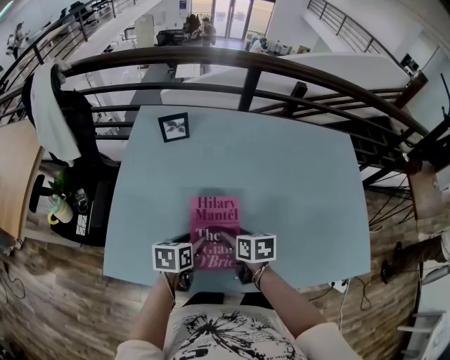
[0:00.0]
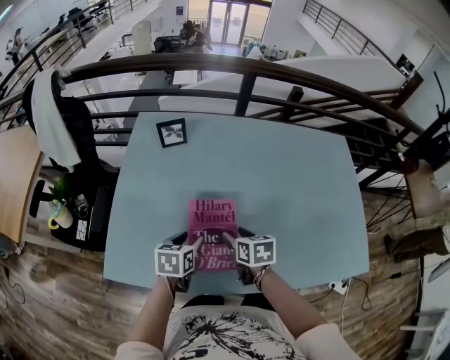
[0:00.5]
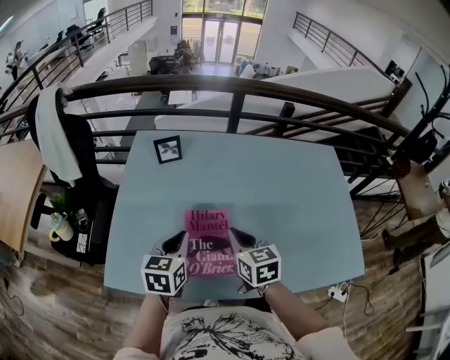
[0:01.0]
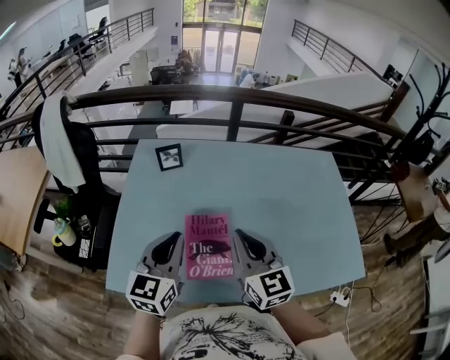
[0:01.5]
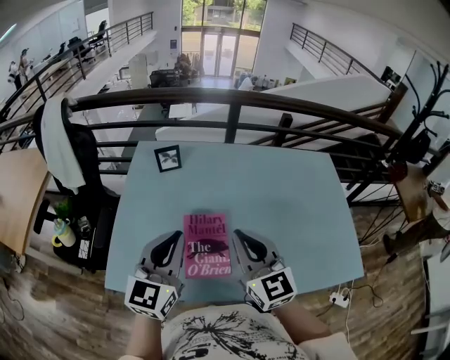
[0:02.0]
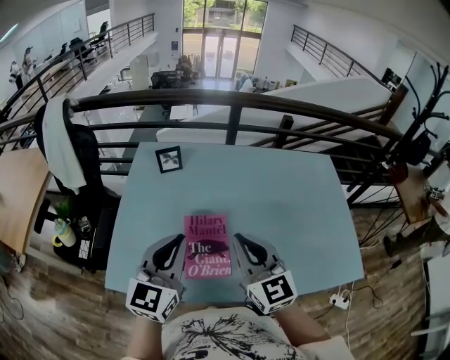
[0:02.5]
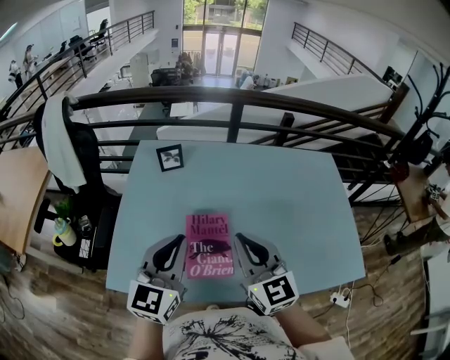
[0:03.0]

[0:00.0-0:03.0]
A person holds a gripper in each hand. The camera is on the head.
0:00.0 to 0:01.5: The two grippers go some 25 cm upward. The left gripper points its fingers some 40 degrees further upward, and closes, while the right gripper angles its fingers upward, by some 40 degrees, and closes up.
0:01.5 to 0:03.0: The left gripper ends up about 5 cm from where it was.

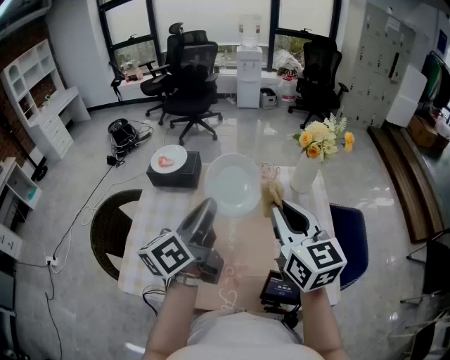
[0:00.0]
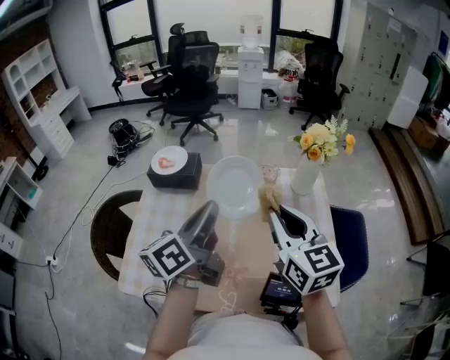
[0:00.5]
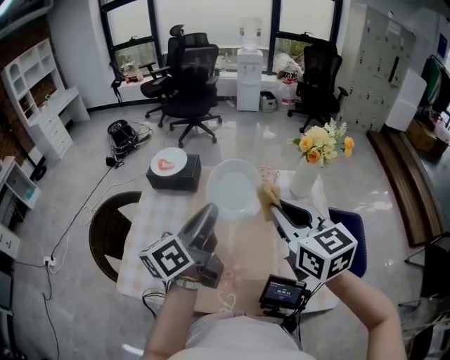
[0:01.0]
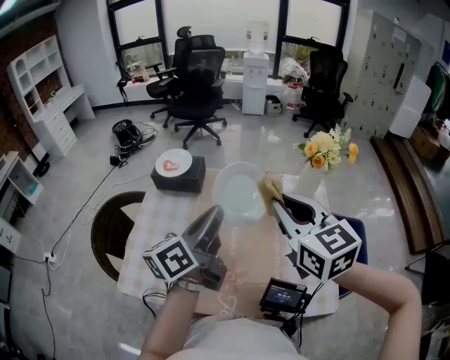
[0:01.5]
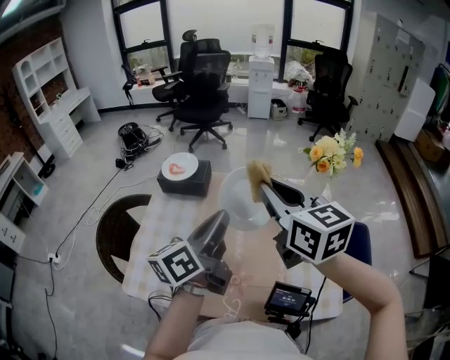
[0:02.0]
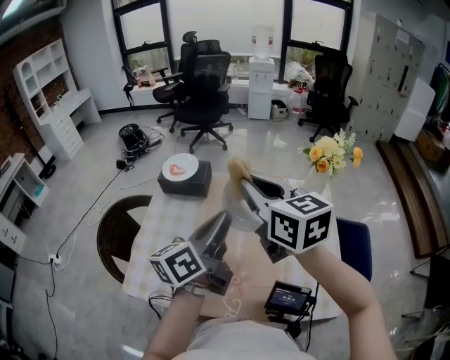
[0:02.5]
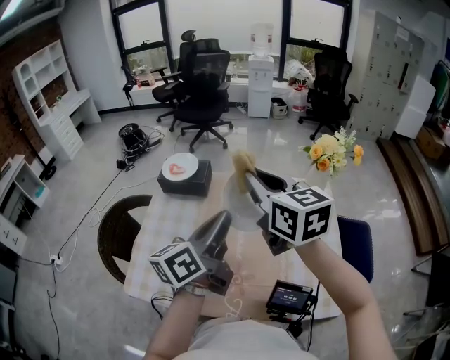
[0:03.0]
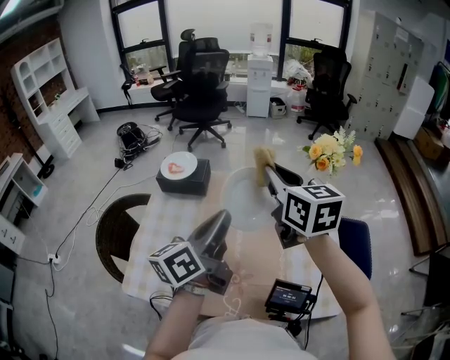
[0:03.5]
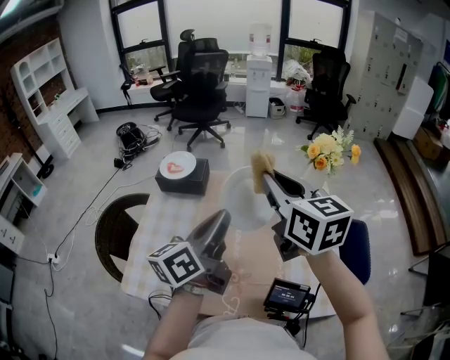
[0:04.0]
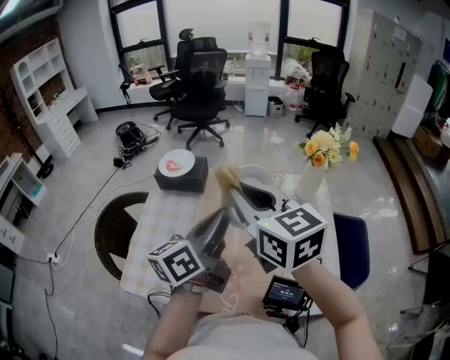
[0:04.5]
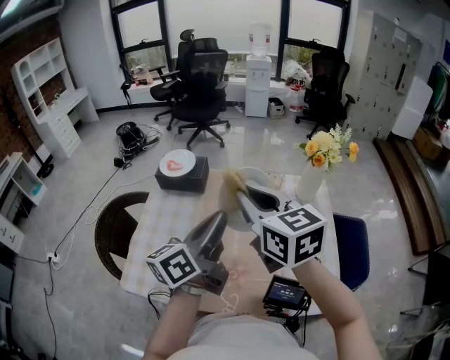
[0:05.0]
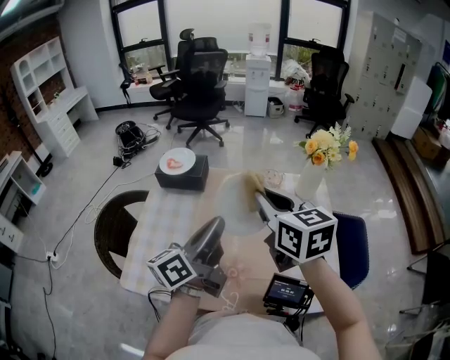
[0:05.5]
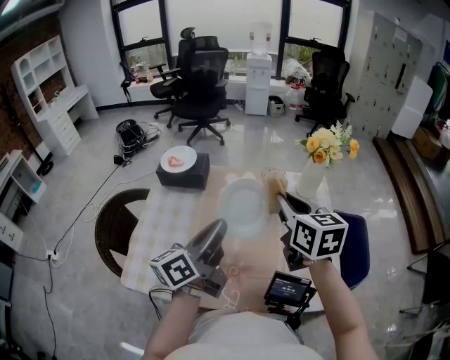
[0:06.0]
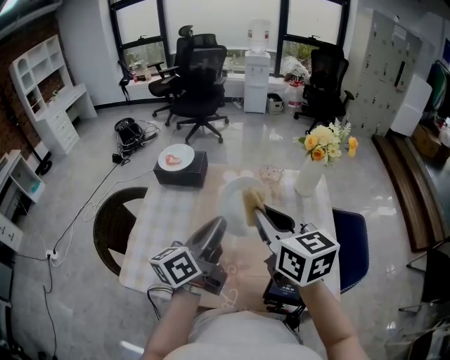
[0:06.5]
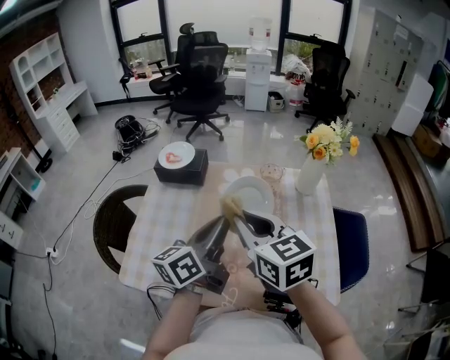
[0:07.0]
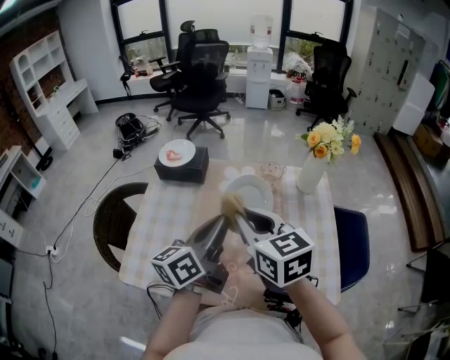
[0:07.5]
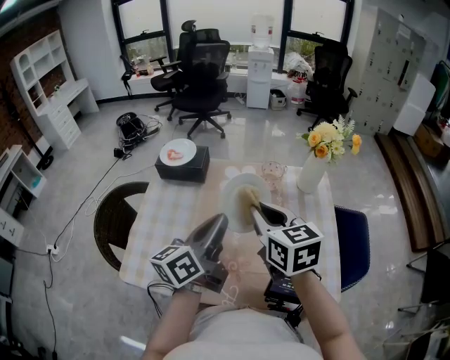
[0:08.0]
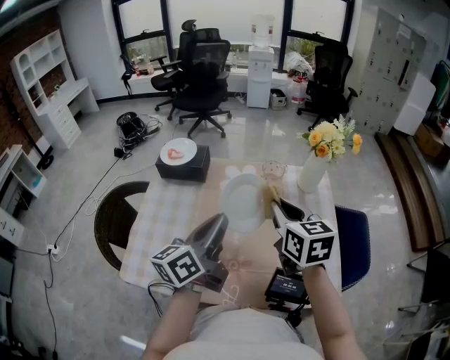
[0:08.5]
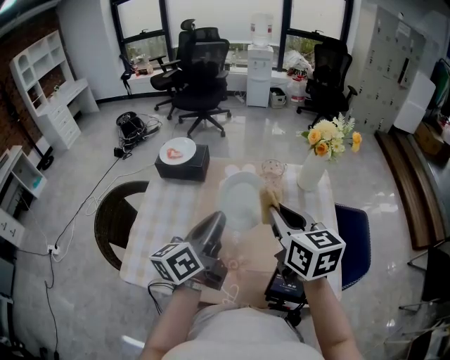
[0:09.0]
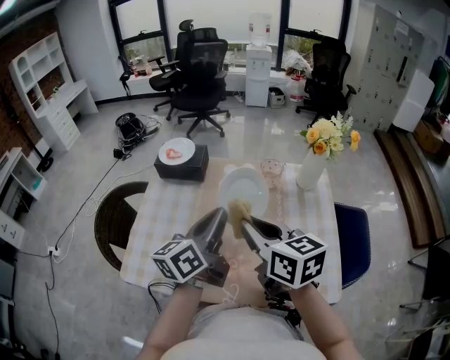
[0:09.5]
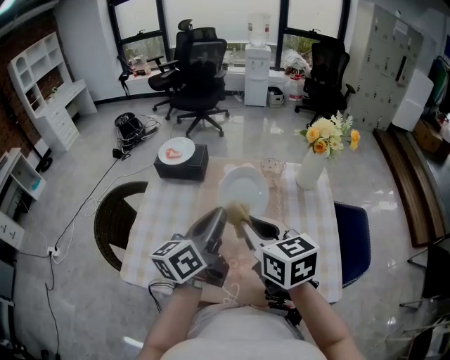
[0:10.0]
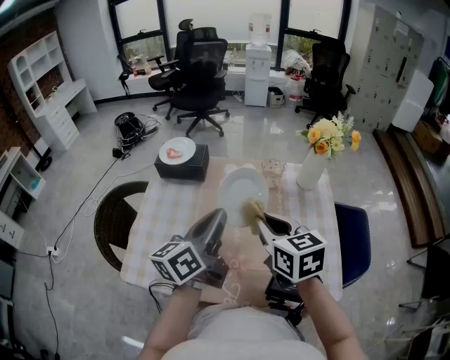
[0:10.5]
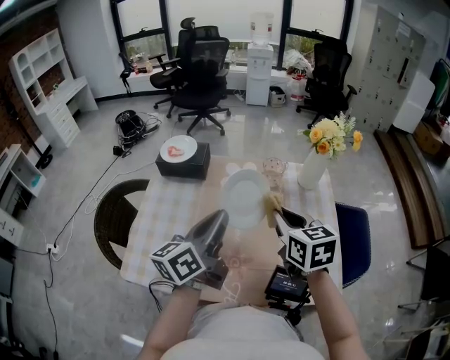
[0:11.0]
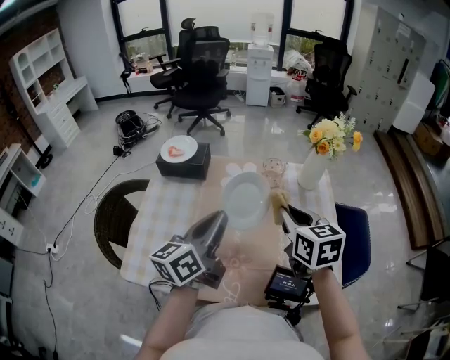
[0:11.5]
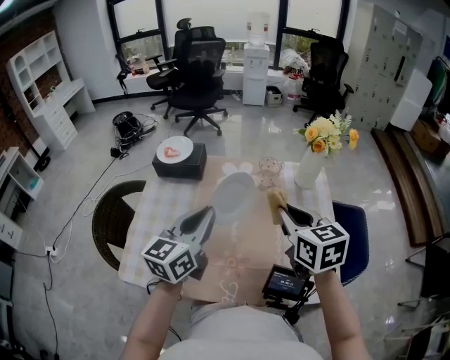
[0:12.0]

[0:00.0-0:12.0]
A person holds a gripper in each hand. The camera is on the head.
0:00.0 to 0:02.0: The right gripper moves some 10 cm.
0:04.0 to 0:06.0: The right gripper moves downward, some 10 cm.
0:10.0 to 0:12.0: The right gripper moves some 10 cm.

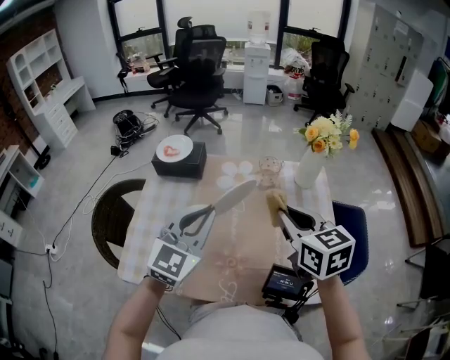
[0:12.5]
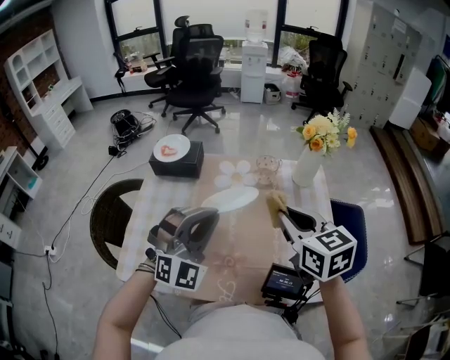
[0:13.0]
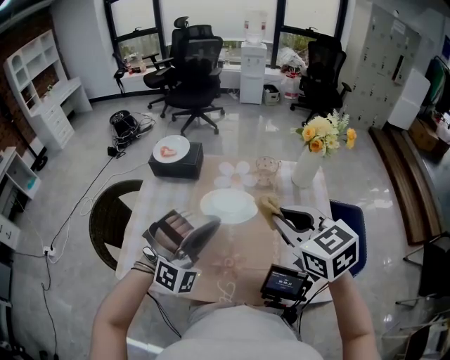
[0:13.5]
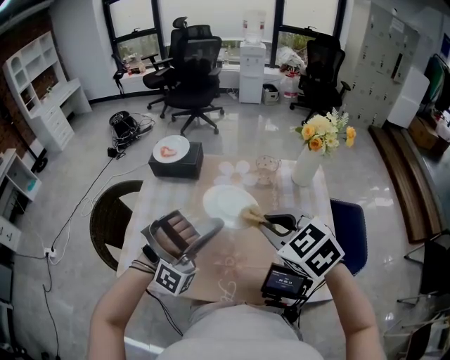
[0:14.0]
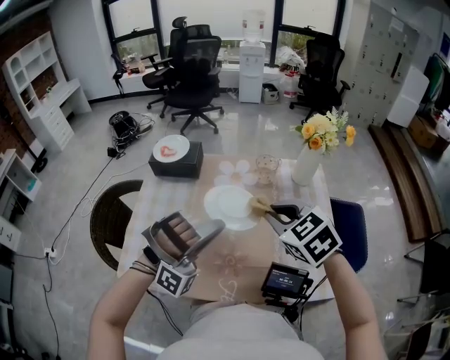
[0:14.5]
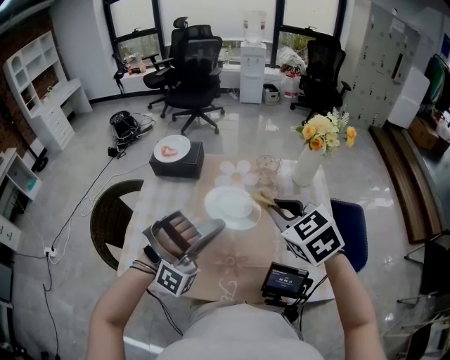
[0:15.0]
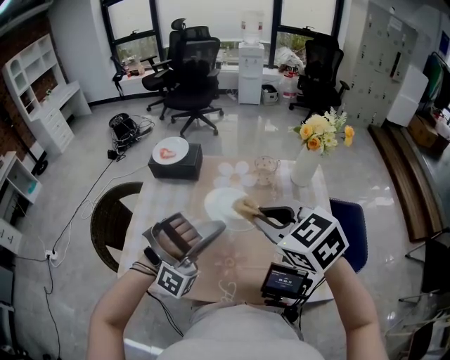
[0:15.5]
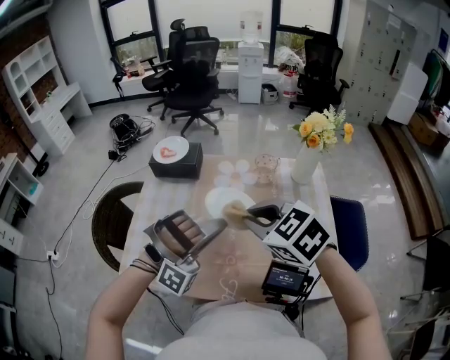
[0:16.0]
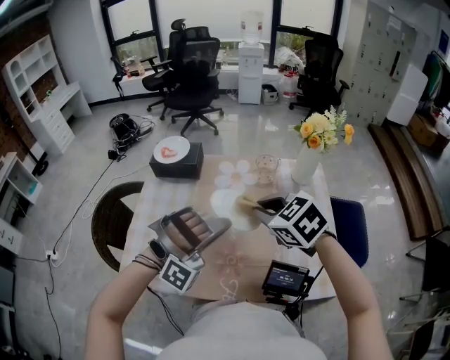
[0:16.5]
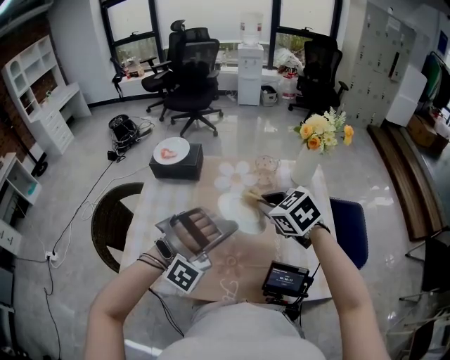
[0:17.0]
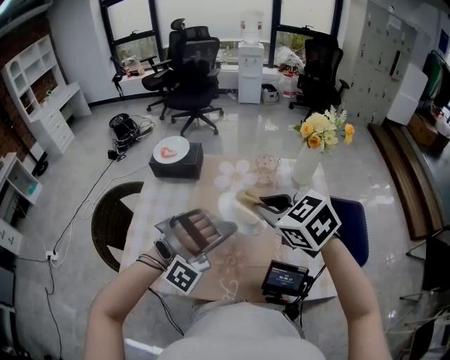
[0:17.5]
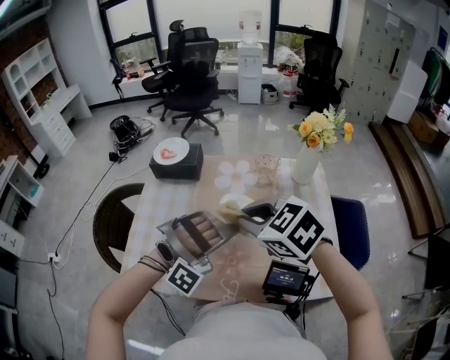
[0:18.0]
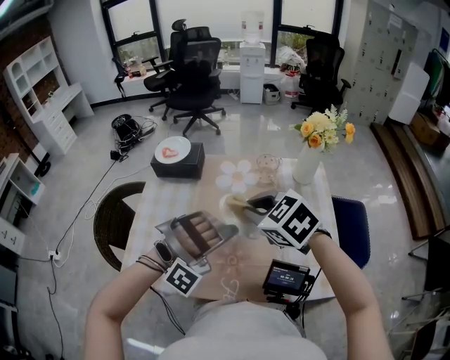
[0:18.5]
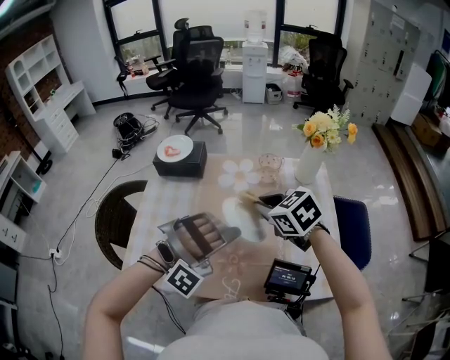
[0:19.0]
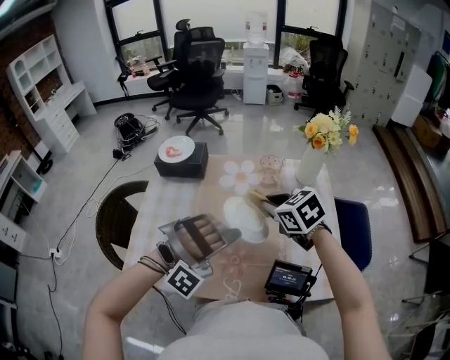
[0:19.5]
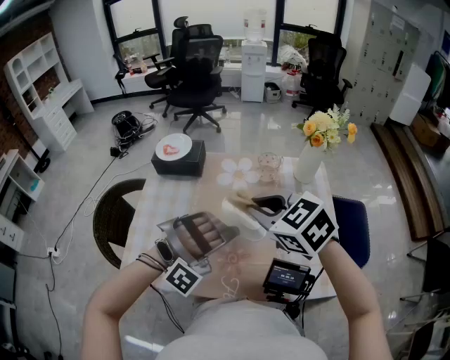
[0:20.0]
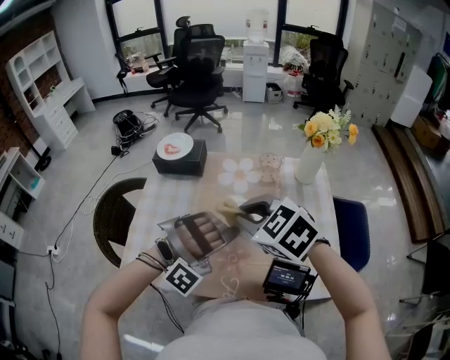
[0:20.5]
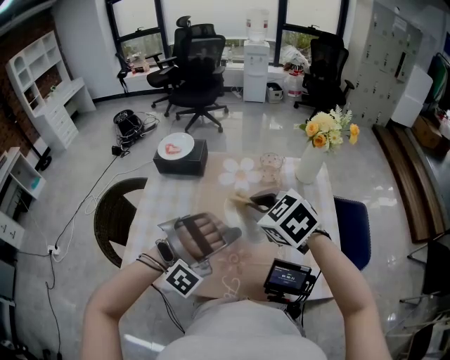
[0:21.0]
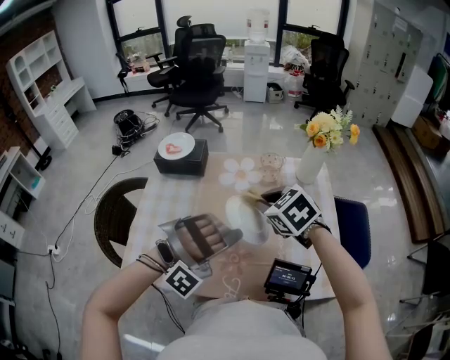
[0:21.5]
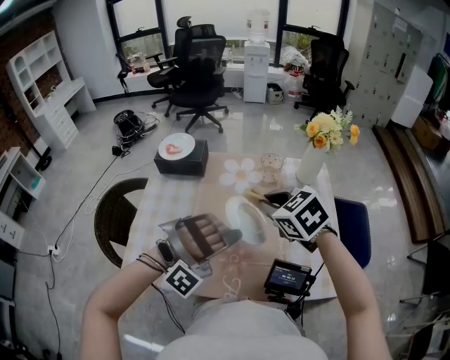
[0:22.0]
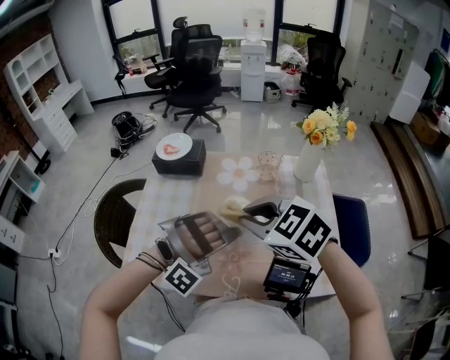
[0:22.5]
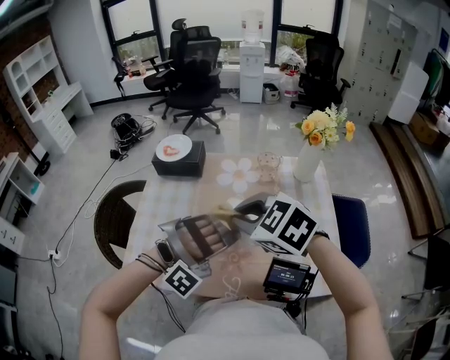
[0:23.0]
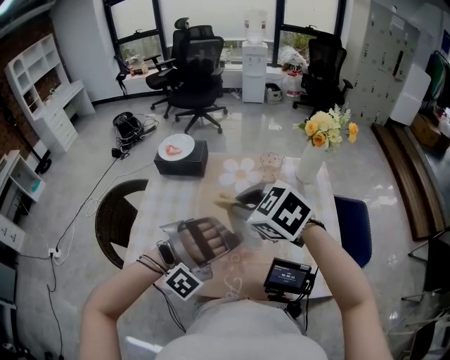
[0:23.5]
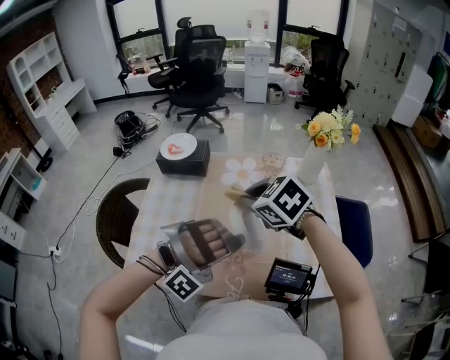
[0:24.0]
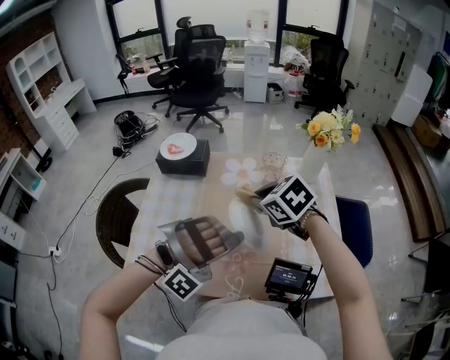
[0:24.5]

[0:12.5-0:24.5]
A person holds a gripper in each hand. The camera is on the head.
0:12.5 to 0:14.5: The right gripper rotates roughly 30 degrees.
0:18.5 to 0:20.5: The right gripper travels downward and back again, about 5 cm each way.
0:22.5 to 0:24.5: The right gripper shifts by about 10 cm.

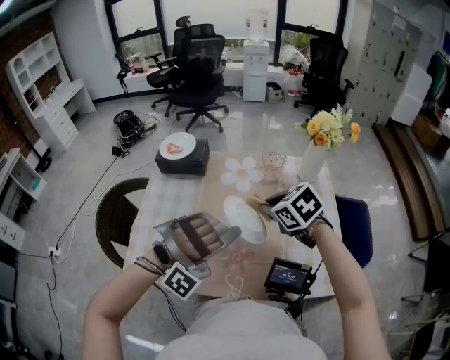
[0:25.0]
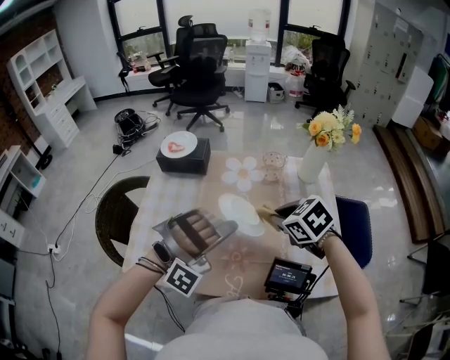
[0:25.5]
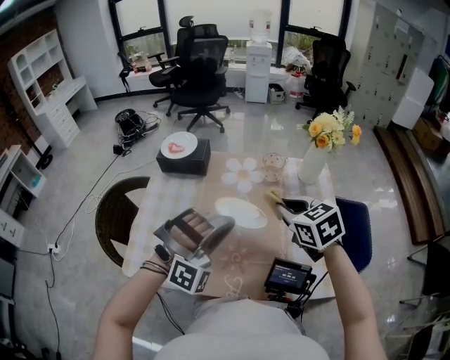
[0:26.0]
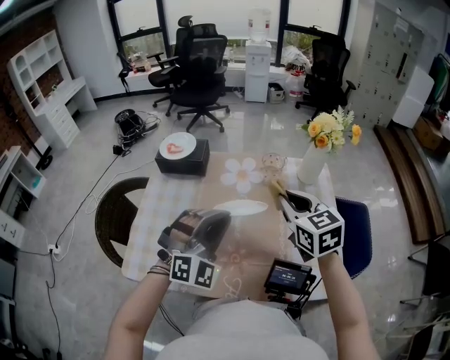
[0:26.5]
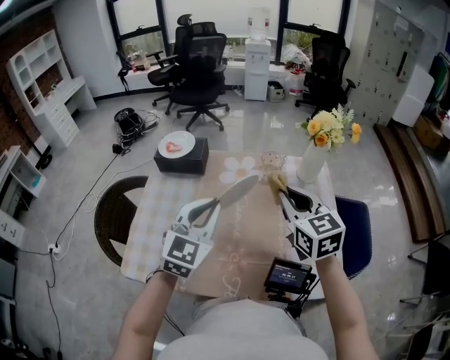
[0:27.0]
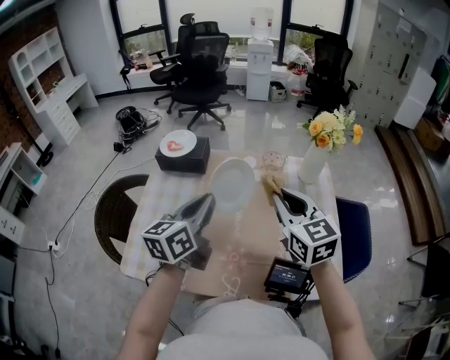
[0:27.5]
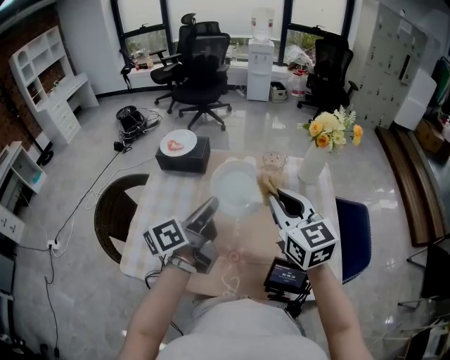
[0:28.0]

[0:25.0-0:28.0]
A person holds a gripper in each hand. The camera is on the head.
0:25.0 to 0:26.5: The right gripper is displaced upward by approximately 5 cm, and swivels some 30 degrees.
